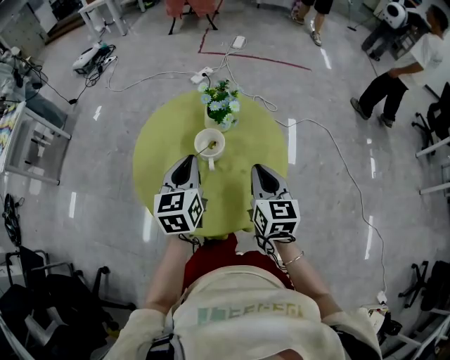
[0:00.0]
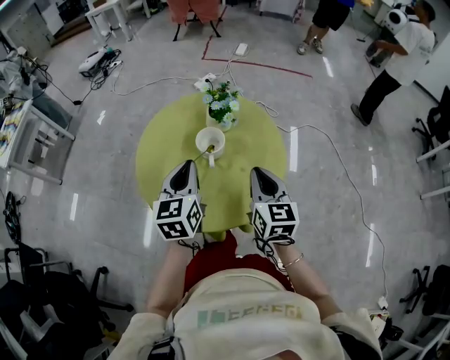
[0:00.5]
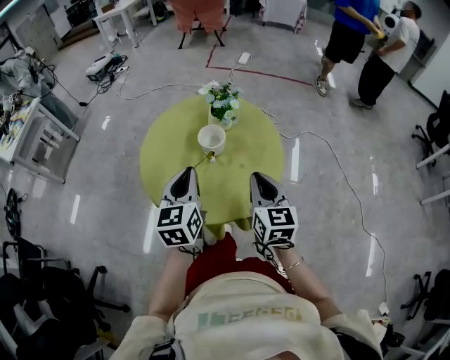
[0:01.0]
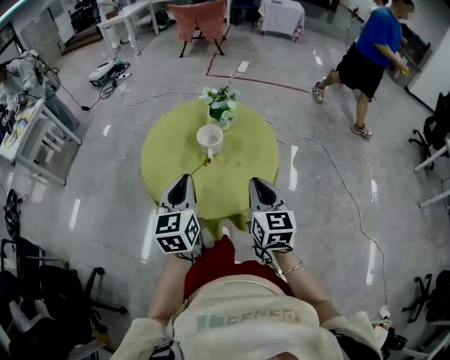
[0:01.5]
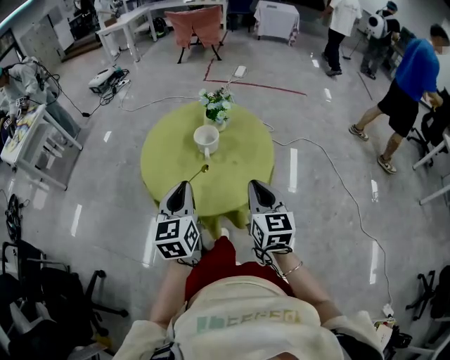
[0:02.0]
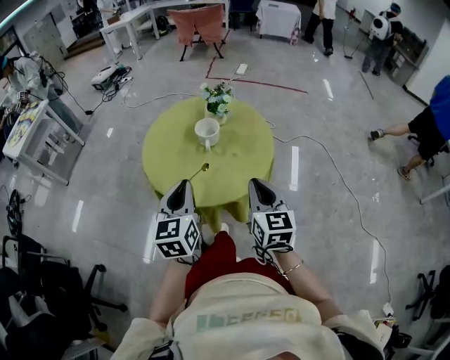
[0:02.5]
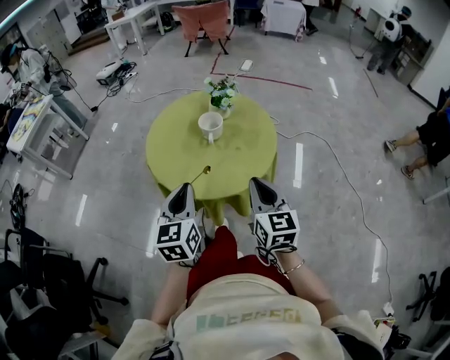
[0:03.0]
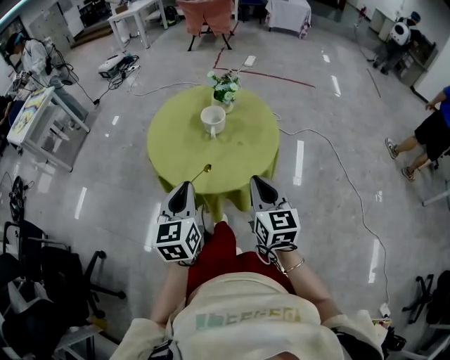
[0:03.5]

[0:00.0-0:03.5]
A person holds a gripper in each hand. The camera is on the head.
0:00.0 to 0:02.0: Both grippers travel together backward, about 20 cm.
0:02.0 to 0:03.5: Both grippers move backward, about 5 cm.
